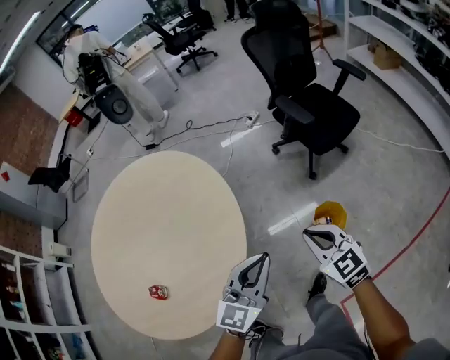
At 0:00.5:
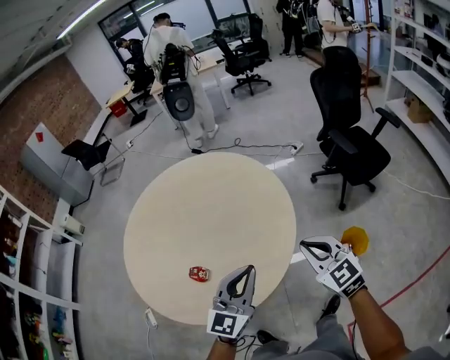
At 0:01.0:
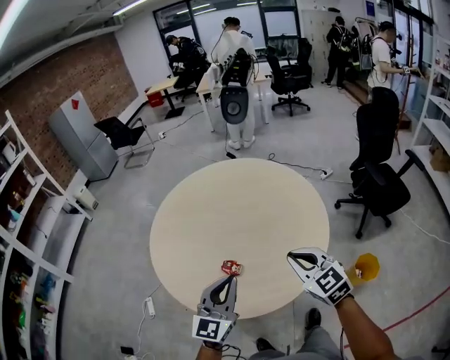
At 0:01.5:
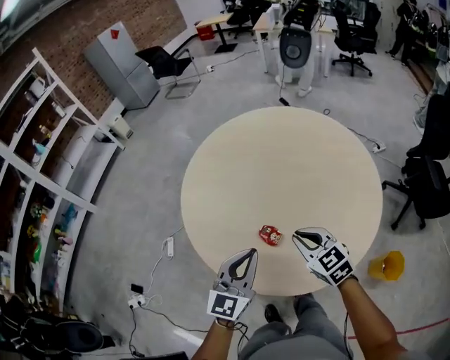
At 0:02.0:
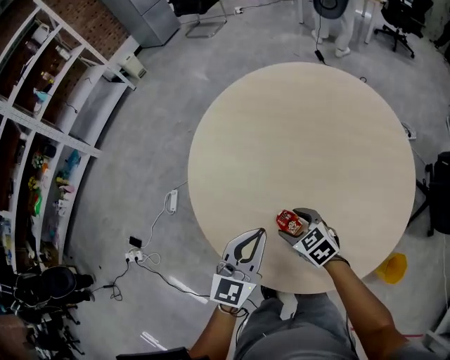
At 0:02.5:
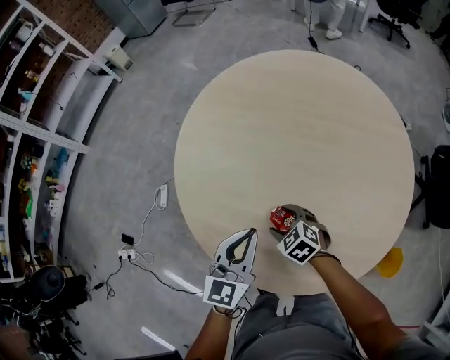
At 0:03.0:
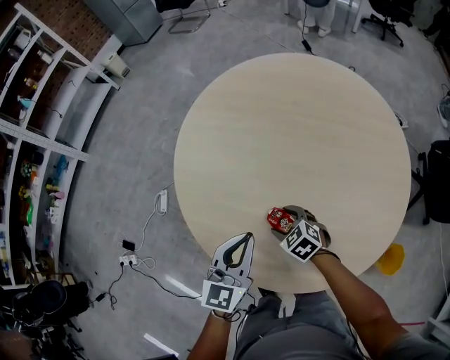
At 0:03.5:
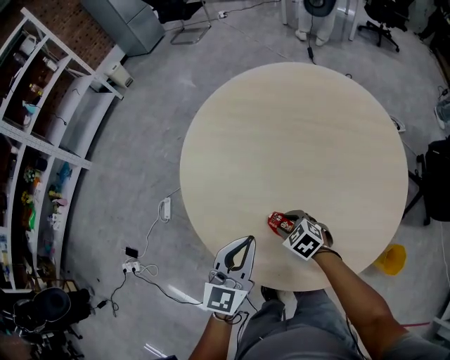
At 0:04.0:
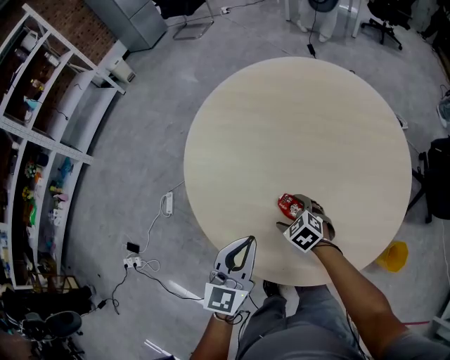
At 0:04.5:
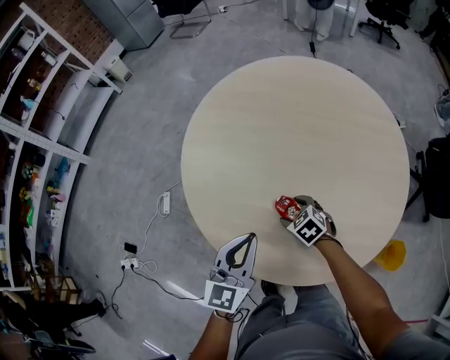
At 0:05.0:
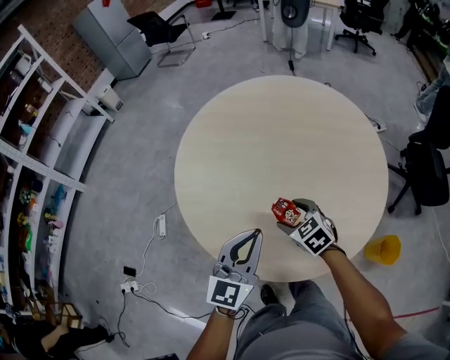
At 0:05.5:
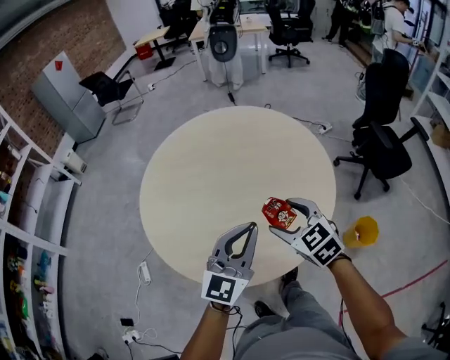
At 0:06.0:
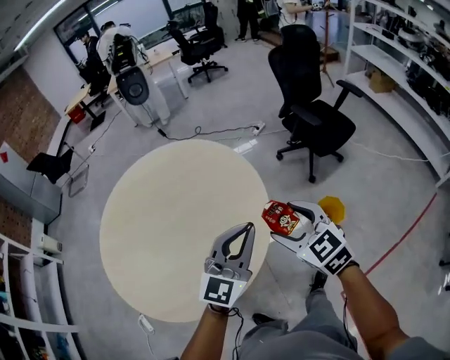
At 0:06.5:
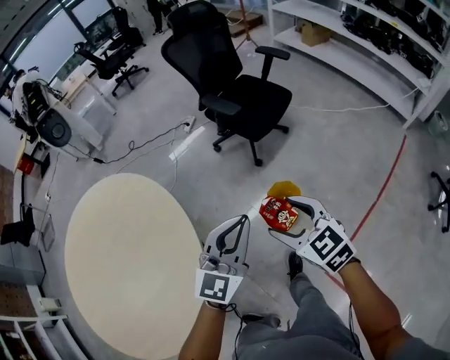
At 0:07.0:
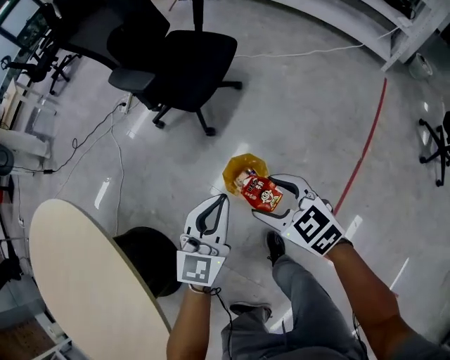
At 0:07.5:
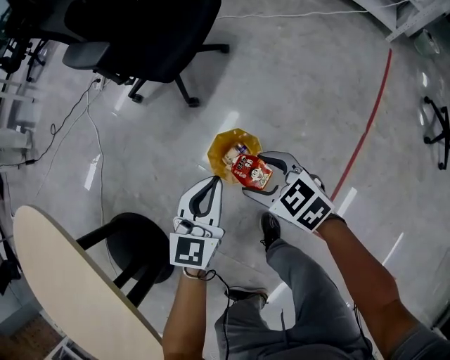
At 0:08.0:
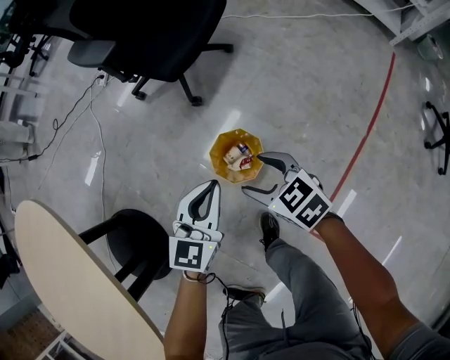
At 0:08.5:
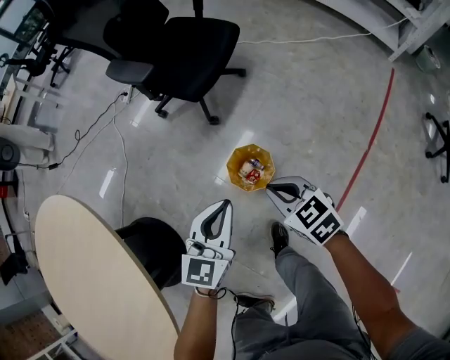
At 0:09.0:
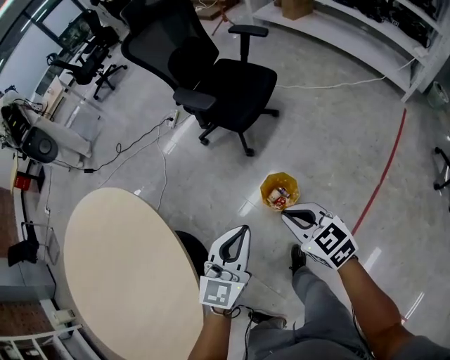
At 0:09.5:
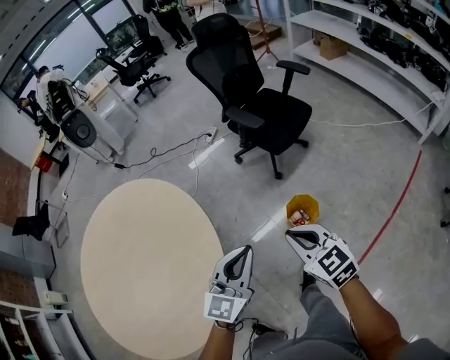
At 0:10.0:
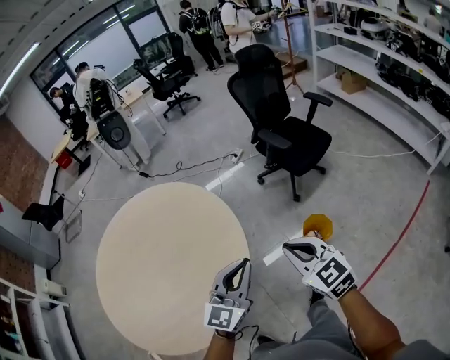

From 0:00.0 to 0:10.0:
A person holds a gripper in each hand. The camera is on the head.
From 0:00.0 to 0:02.0: The pair of grippers is taken some 70 cm. The right gripper swivels approximately 60 degrees, and opens its fingers; the left gripper rotates approximately 50 degrees.
From 0:02.0 to 0:04.0: The left gripper changes place by approximately 5 cm, while the right gripper heads downward, covering about 5 cm, and closes and opens again.
From 0:04.0 to 0:06.0: The pair of grippers is taken some 40 cm. The right gripper angles its fingers upward, by some 30 degrees, while the left gripper swivels roughly 60 degrees.
From 0:06.0 to 0:08.0: Both grippers are carried to the right and forward, roughly 60 cm. Both grippers travel together downward, about 50 cm. The right gripper swivels some 40 degrees. The left gripper changes its angle by roughly 40 degrees.
From 0:08.0 to 0:10.0: The two grippers travel together, to the left and backward, roughly 40 cm. Both grippers move upward, about 50 cm. The left gripper changes its angle by approximately 30 degrees. The right gripper changes its angle by some 30 degrees, and closes.

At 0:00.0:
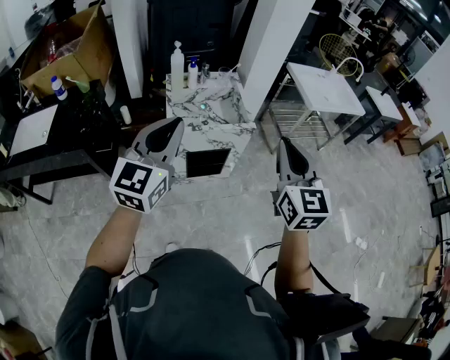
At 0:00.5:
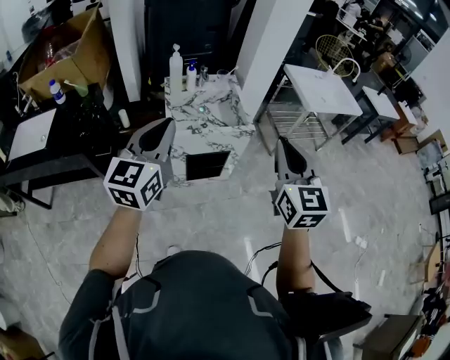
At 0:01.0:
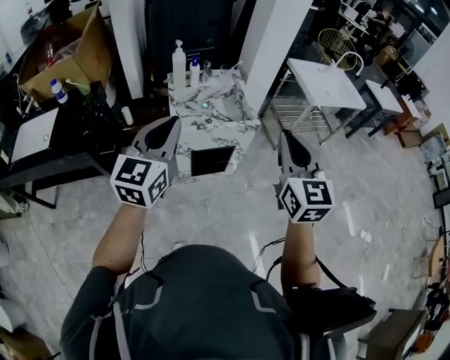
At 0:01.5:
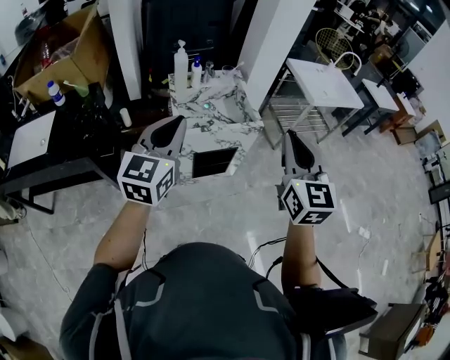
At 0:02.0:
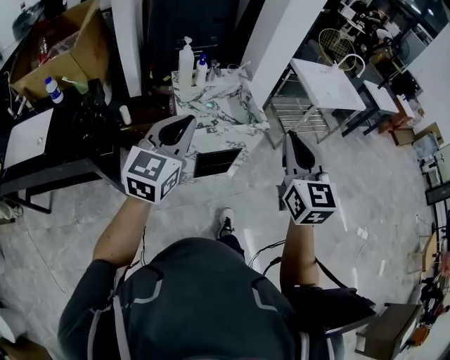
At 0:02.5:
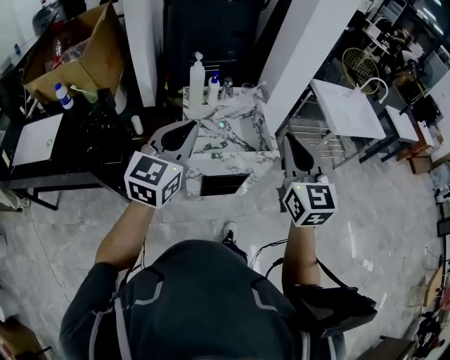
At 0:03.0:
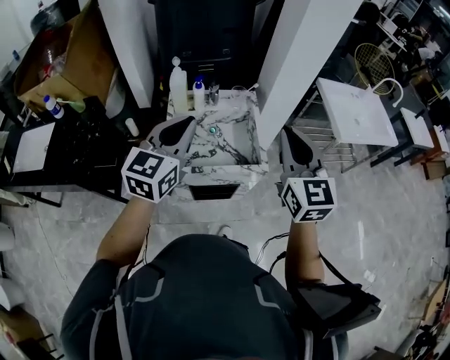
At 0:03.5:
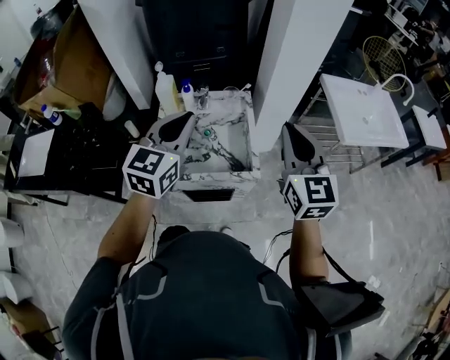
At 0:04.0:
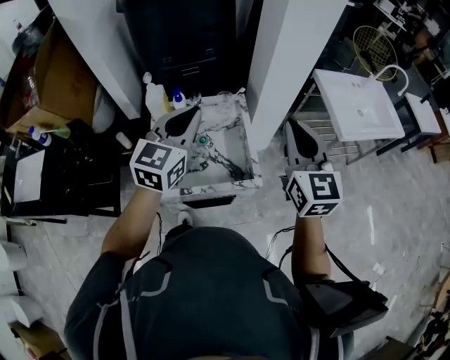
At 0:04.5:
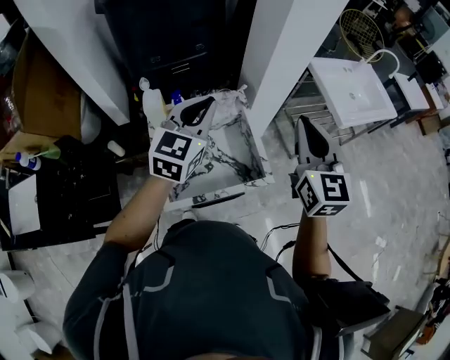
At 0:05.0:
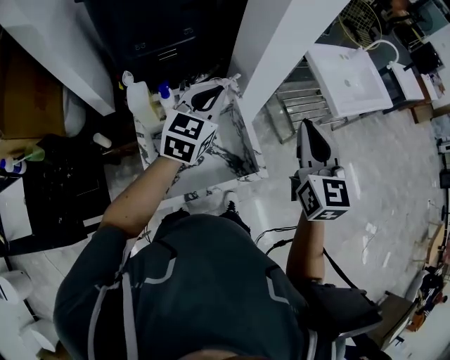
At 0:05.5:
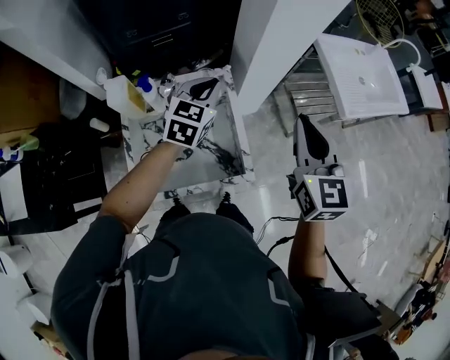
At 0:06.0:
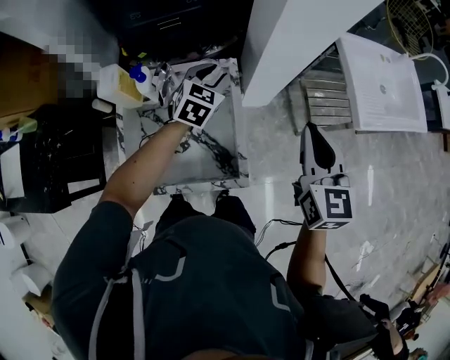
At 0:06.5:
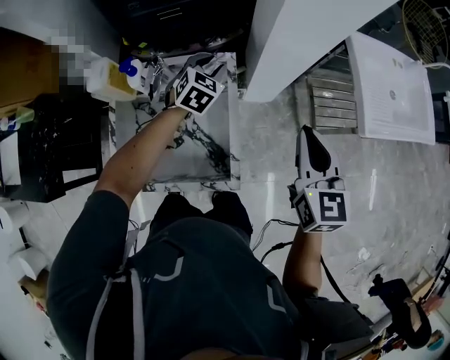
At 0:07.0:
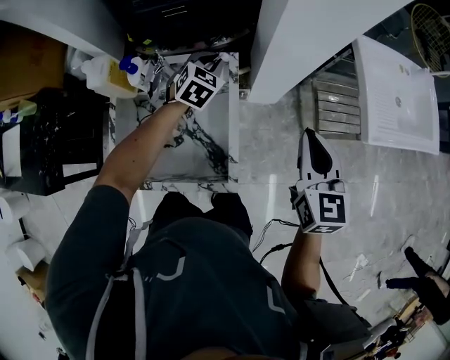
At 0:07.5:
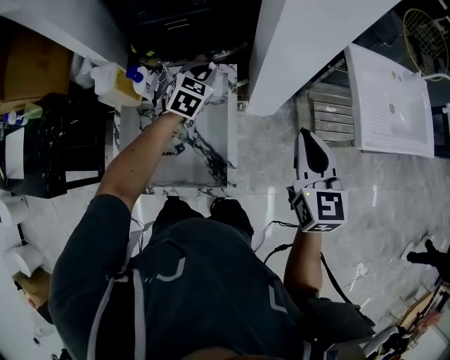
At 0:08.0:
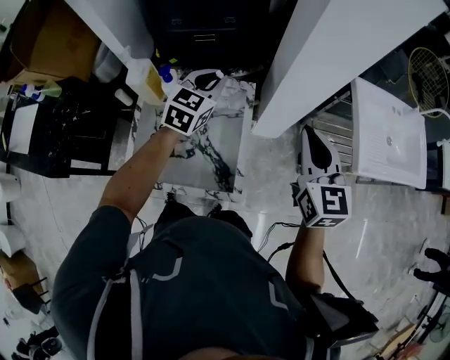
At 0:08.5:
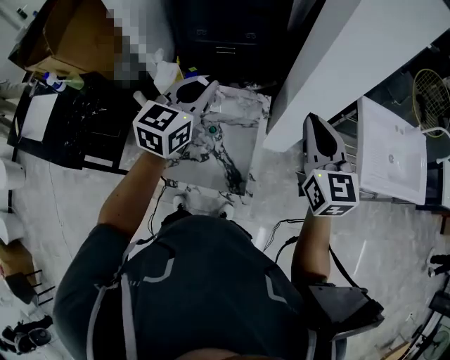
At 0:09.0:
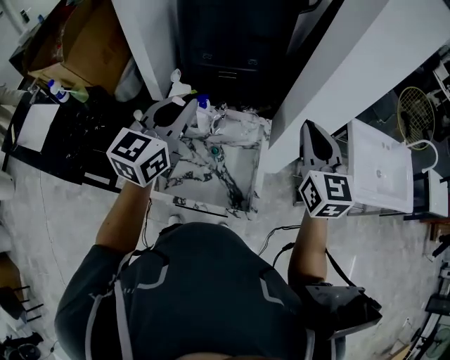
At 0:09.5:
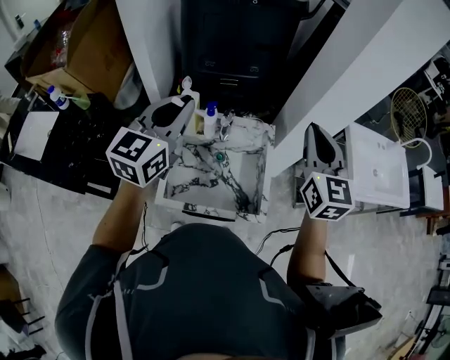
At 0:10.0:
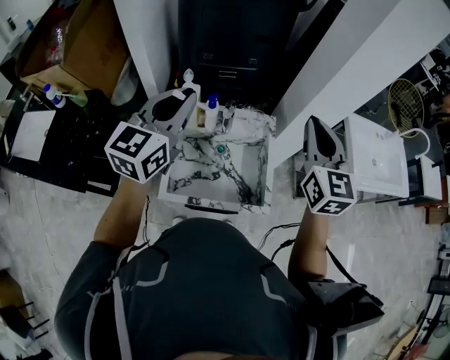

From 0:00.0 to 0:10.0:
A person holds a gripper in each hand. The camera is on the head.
From 0:00.0 to 0:02.0: The right gripper moves to the left, about 10 cm. Meanwhile the left gripper shifts about 10 cm to the left and forward.
From 0:02.0 to 0:04.0: The right gripper is displaced forward by some 35 cm. The left gripper is displaced forward and to the right by some 40 cm.
From 0:04.0 to 0:06.0: The left gripper goes some 35 cm forward and downward, changes its angle by approximately 30 degrees, and opens, while the right gripper heads forward, downward and to the right, covering roughly 20 cm.
From 0:06.0 to 0:08.0: The right gripper reaches roughly 5 cm downward, then returns. Meanwhile the left gripper travels upward by approximately 10 cm, and closes up.
From 0:08.0 to 0:10.0: The right gripper shifts some 20 cm to the left and upward; the left gripper heads upward, to the left and backward, covering roughly 35 cm, and rotates some 20 degrees.

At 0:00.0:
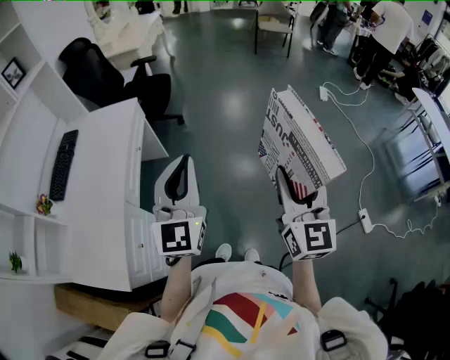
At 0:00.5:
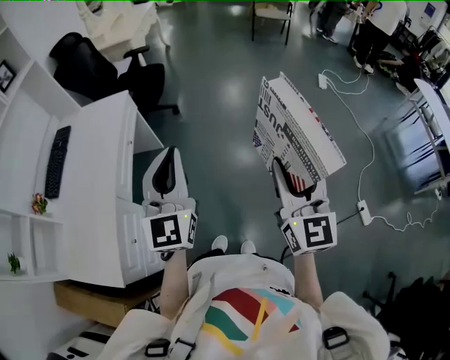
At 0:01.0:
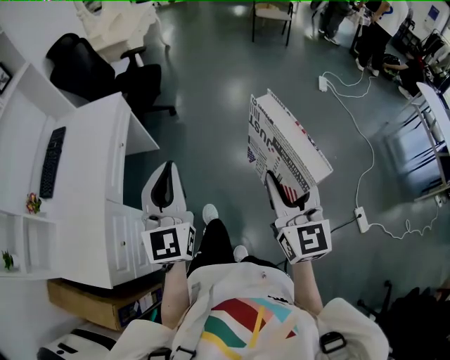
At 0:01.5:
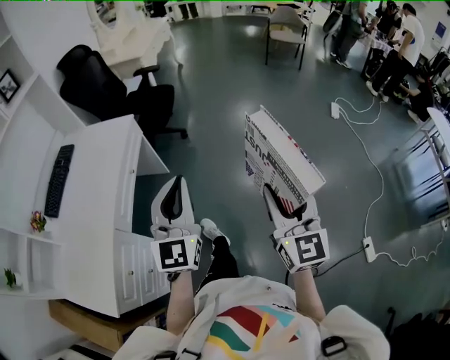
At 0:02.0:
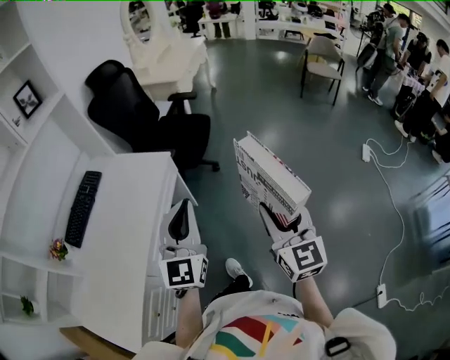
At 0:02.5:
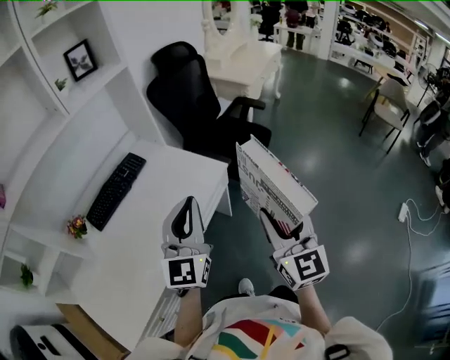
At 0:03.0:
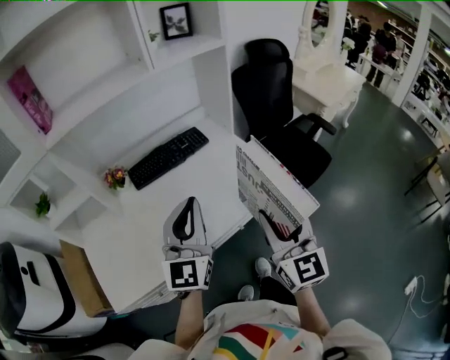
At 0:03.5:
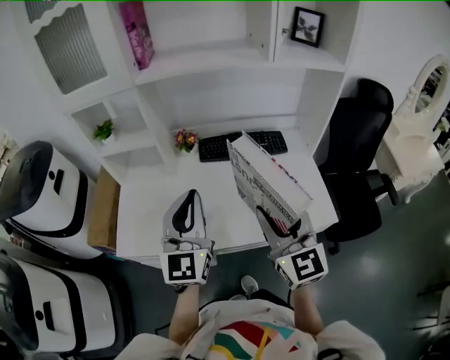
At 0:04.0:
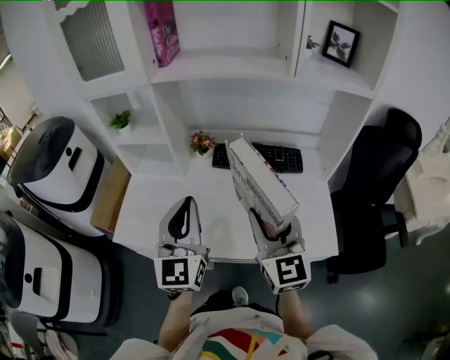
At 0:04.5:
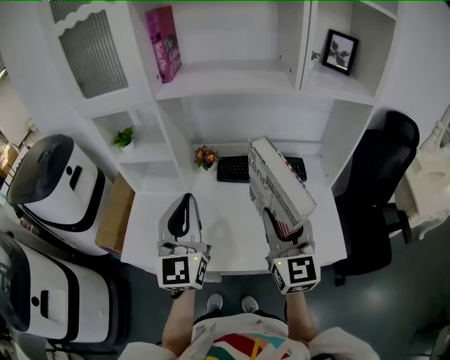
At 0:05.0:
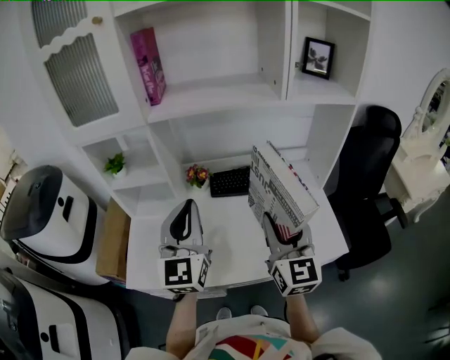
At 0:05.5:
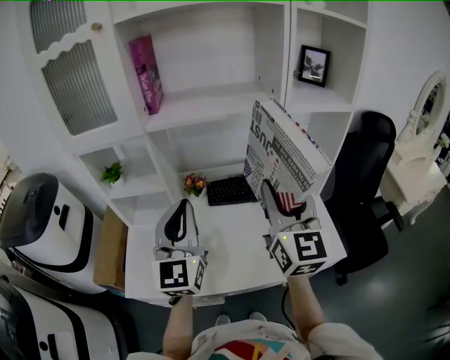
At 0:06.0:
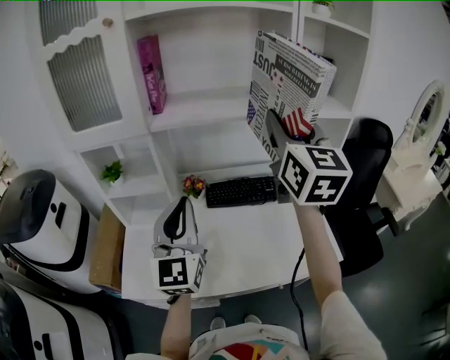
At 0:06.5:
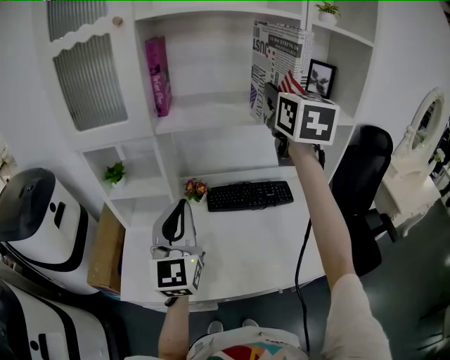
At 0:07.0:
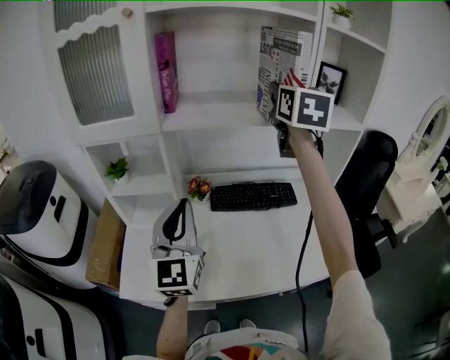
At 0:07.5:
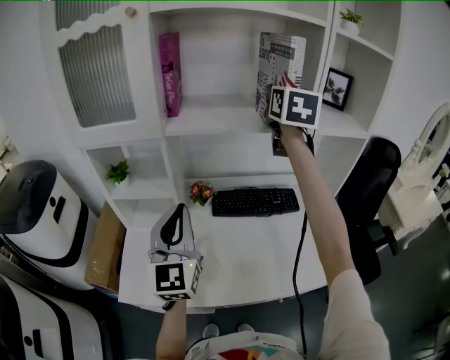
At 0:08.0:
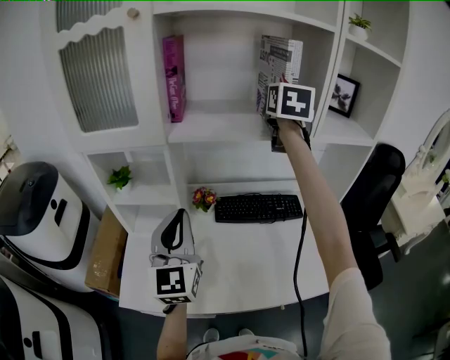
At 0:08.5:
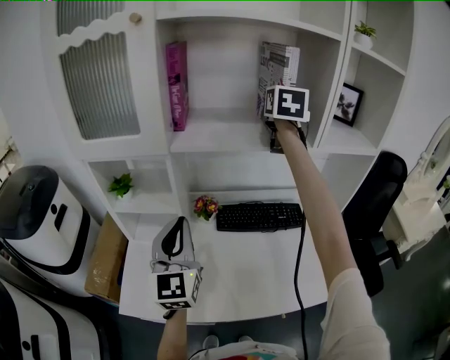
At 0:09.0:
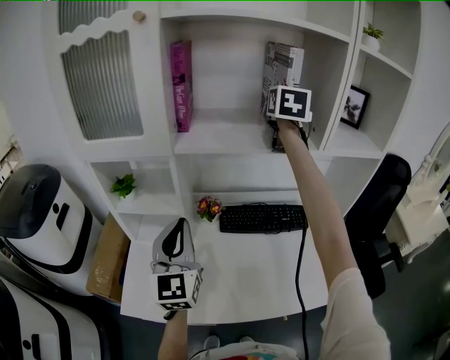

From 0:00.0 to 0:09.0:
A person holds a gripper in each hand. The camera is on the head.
From 0:00.0 to 0:02.0: Both grippers move forward, roughly 30 cm. The right gripper swivels approximately 20 degrees.
From 0:02.0 to 0:04.5: The two grippers travel together, some 50 cm. The left gripper rotates roughly 80 degrees. Meanwhile the right gripper turns by about 80 degrees.
From 0:04.5 to 0:07.0: The right gripper goes approximately 35 cm upward and forward. The left gripper shifts about 10 cm forward and to the left.
From 0:07.0 to 0:09.0: The right gripper is displaced forward by roughly 15 cm; the left gripper travels forward by approximately 5 cm.
